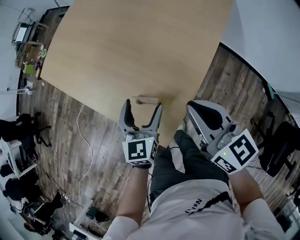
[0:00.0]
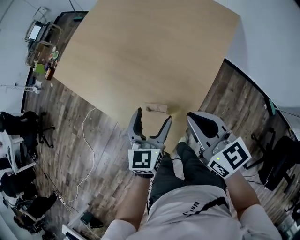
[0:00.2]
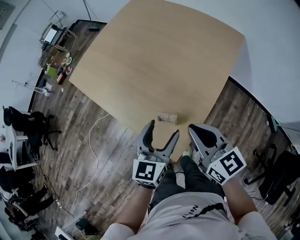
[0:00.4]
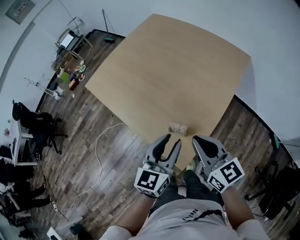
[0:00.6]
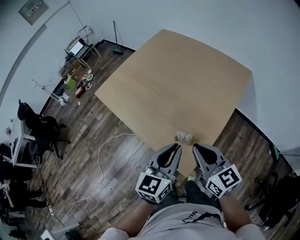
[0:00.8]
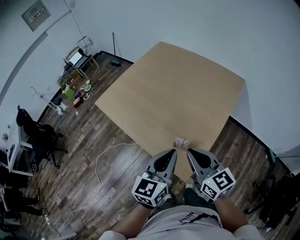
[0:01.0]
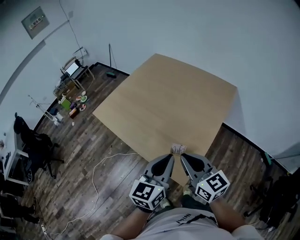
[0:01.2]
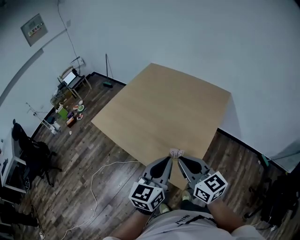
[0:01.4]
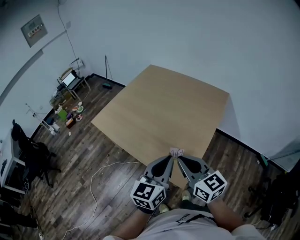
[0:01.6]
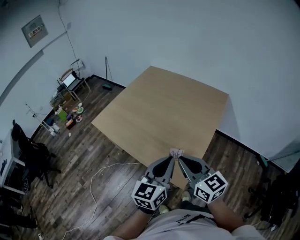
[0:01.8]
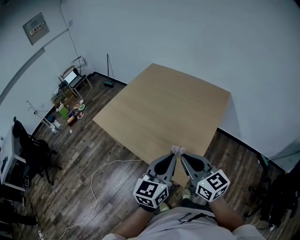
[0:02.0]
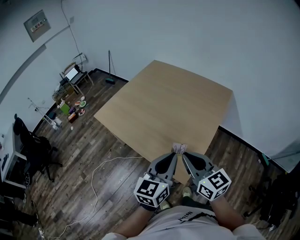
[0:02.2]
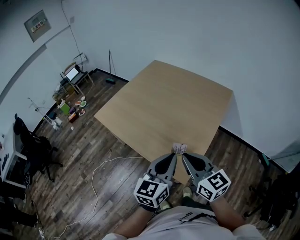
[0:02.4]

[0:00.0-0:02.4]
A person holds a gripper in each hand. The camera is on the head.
0:00.0 to 0:01.2: The right gripper shifts some 25 cm to the left, upward and backward, while the left gripper heads upward and backward, covering approximately 25 cm, changes its angle by approximately 20 degrees, and closes.
0:01.2 to 0:02.4: The grippers stay close to where they were, moving slightly.

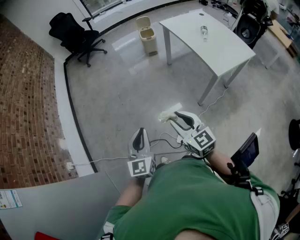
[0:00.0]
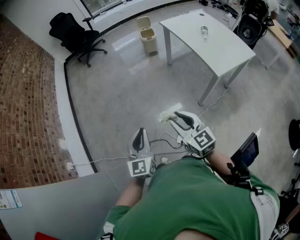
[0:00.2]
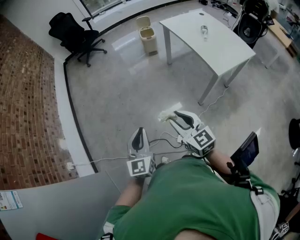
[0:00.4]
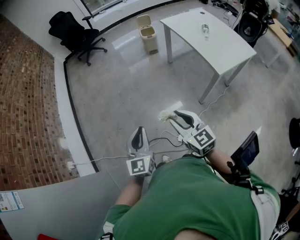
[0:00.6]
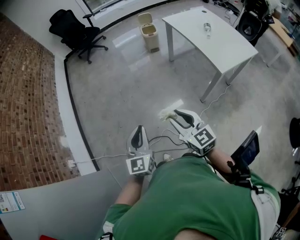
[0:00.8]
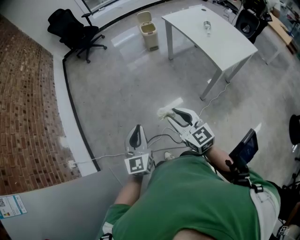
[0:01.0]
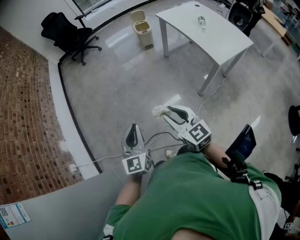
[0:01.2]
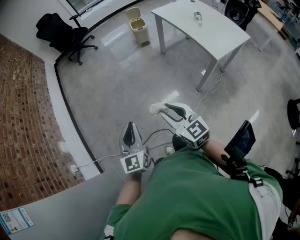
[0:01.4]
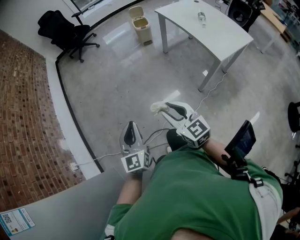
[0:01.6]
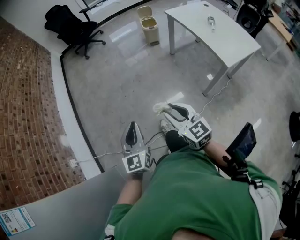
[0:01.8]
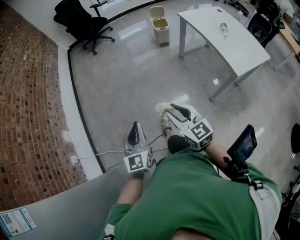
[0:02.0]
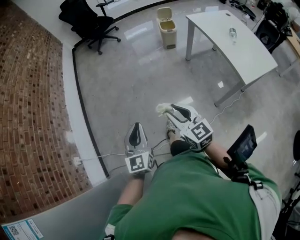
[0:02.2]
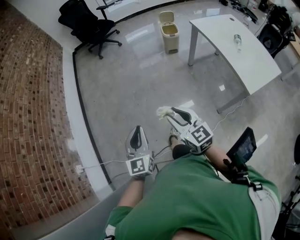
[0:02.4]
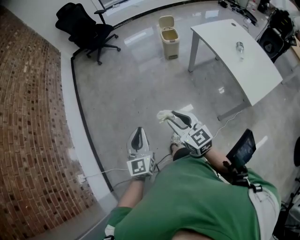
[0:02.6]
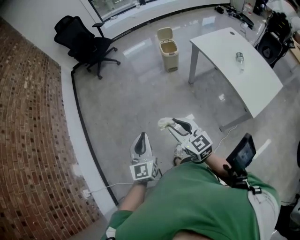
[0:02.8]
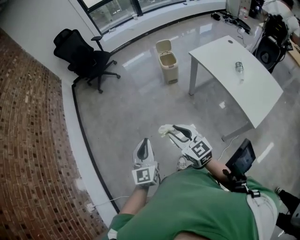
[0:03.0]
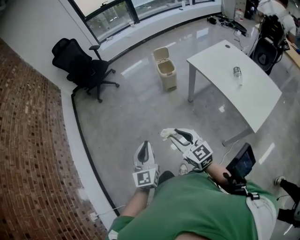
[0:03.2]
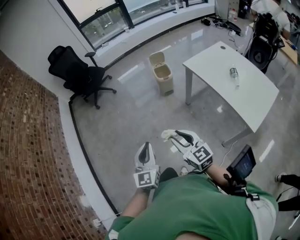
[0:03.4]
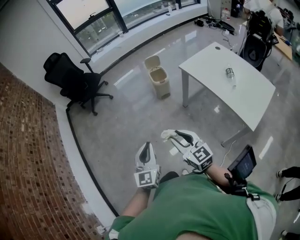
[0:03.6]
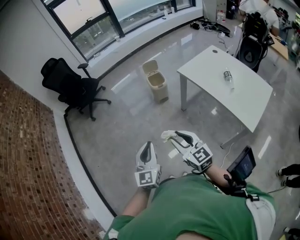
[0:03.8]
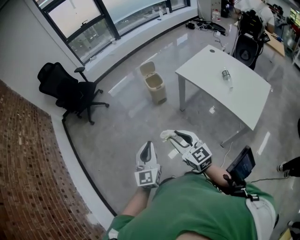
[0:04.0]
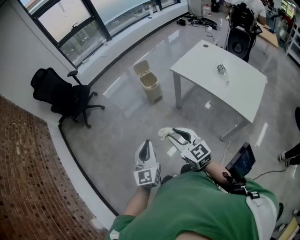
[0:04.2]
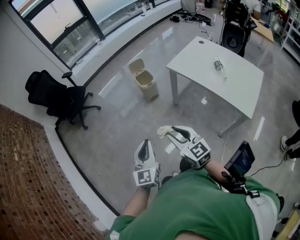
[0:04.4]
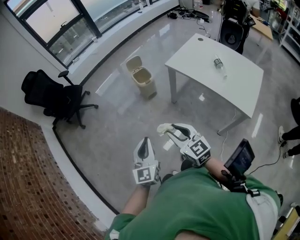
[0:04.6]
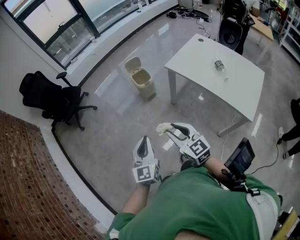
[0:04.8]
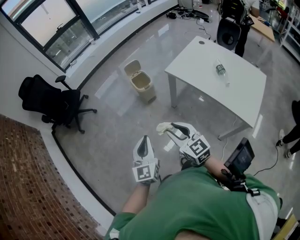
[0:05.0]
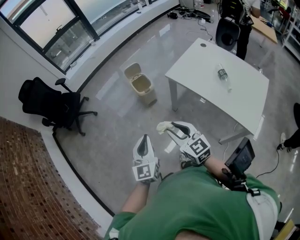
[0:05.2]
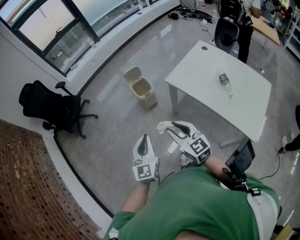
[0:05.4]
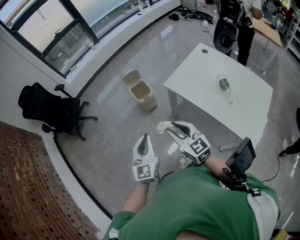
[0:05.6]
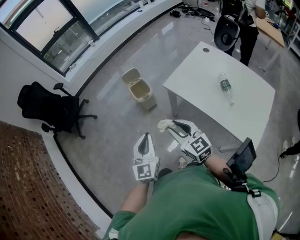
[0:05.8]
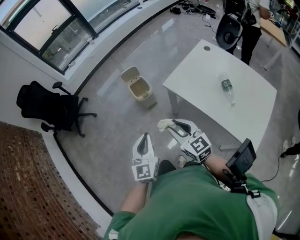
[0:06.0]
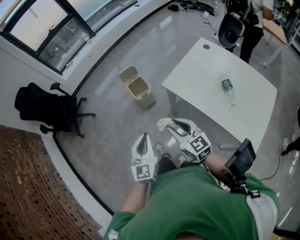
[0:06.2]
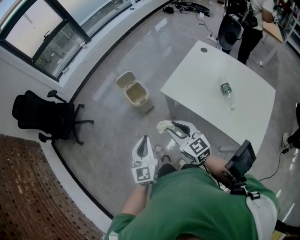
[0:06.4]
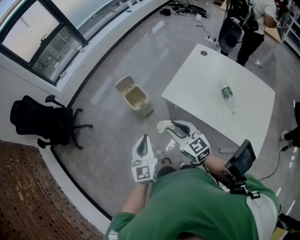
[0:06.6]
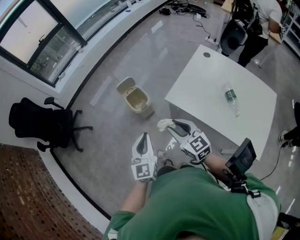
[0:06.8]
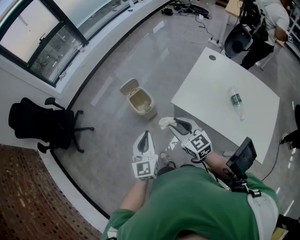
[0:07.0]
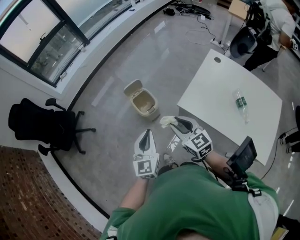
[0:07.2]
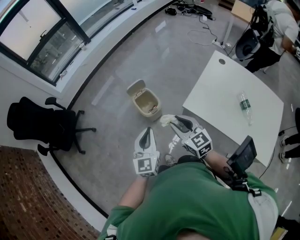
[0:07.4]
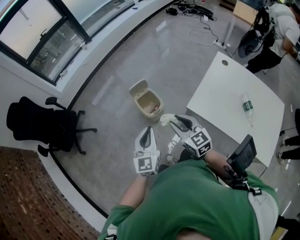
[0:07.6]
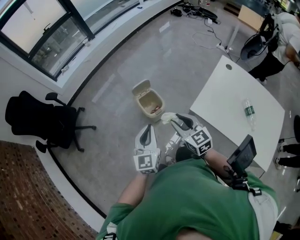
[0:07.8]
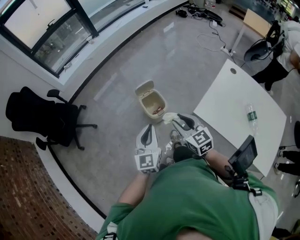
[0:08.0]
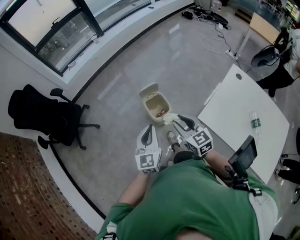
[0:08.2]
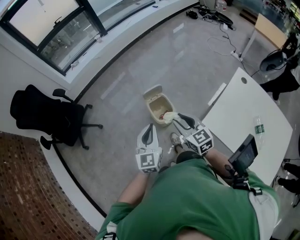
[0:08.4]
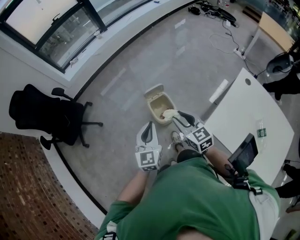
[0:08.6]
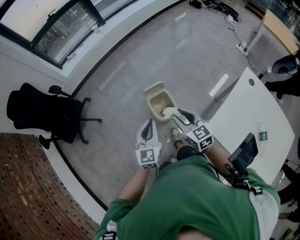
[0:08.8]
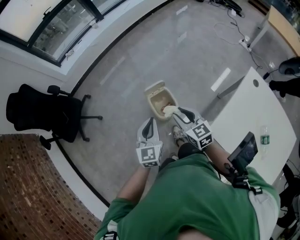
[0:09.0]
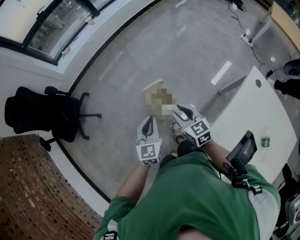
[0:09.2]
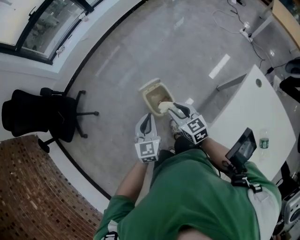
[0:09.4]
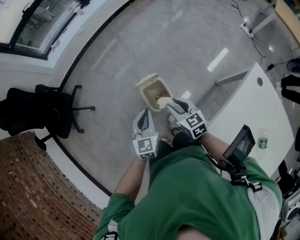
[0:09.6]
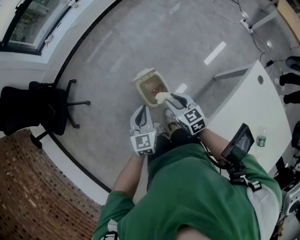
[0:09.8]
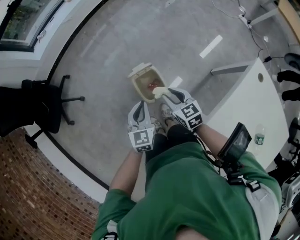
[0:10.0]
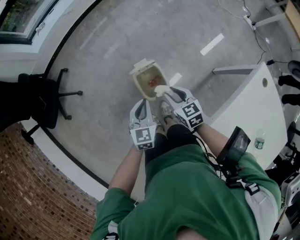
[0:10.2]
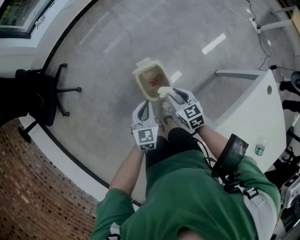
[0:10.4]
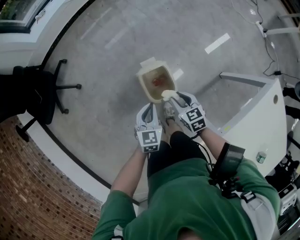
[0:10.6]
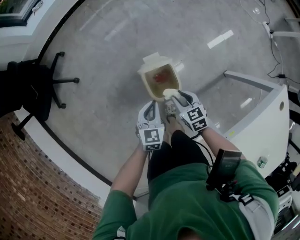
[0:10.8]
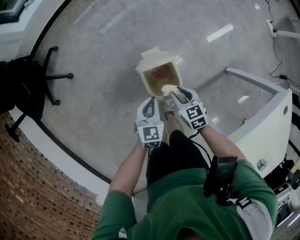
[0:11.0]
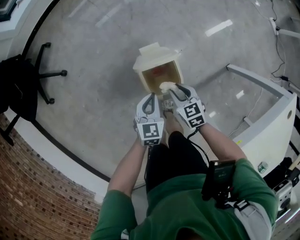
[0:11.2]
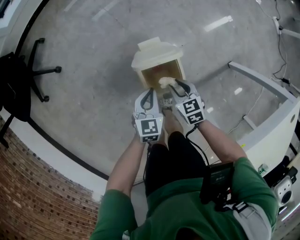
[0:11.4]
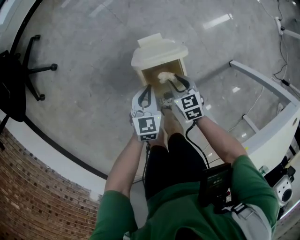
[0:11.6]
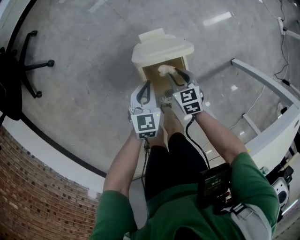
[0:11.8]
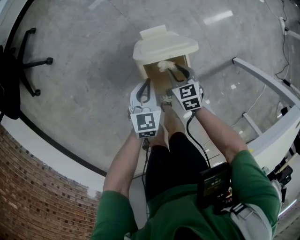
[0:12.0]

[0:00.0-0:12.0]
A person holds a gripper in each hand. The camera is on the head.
0:00.0 to 0:01.6: Both grippers move to the left, approximately 10 cm.
0:01.6 to 0:03.0: The grippers both shift forward by some 35 cm.
0:03.0 to 0:04.4: The two grippers go some 15 cm forward. The right gripper changes its angle by about 20 degrees.
0:04.4 to 0:06.0: Both grippers move forward and to the right, roughly 30 cm.
0:06.0 to 0:07.6: Both grippers travel together forward, approximately 25 cm.
0:07.6 to 0:09.0: Both grippers travel together forward, roughly 20 cm.
0:09.0 to 0:10.4: The grippers both shift downward and forward by roughly 20 cm. The right gripper changes its angle by roughly 20 degrees.
0:10.4 to 0:12.0: Both grippers move downward, roughly 30 cm.

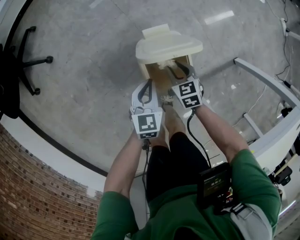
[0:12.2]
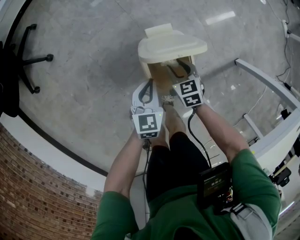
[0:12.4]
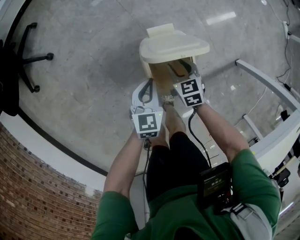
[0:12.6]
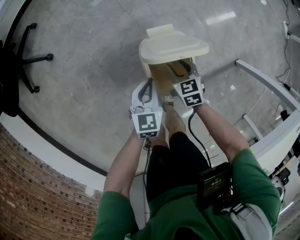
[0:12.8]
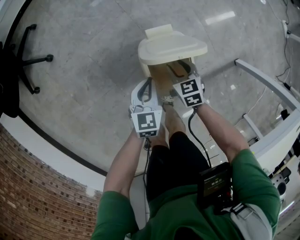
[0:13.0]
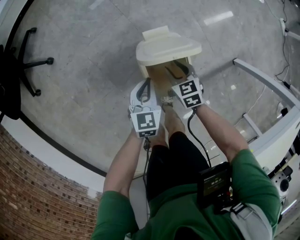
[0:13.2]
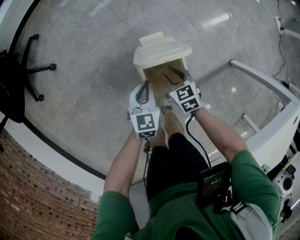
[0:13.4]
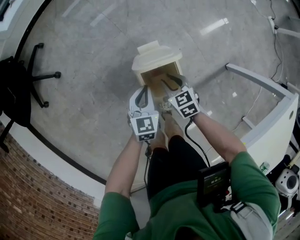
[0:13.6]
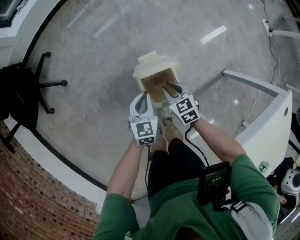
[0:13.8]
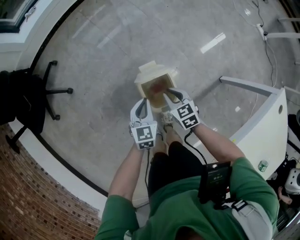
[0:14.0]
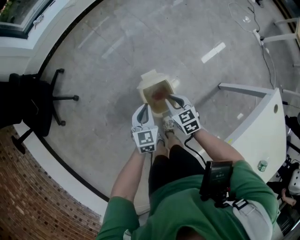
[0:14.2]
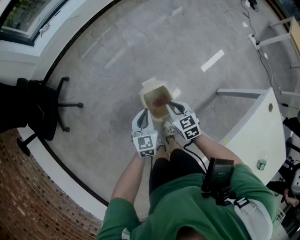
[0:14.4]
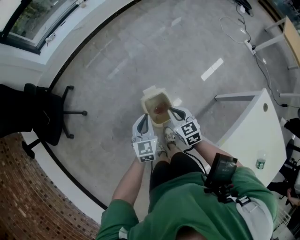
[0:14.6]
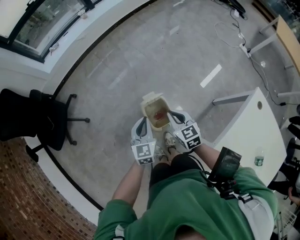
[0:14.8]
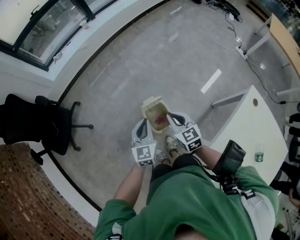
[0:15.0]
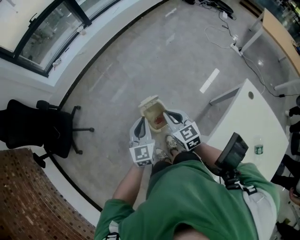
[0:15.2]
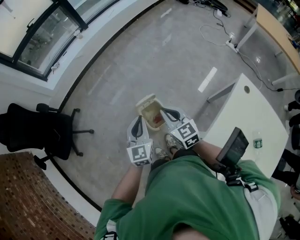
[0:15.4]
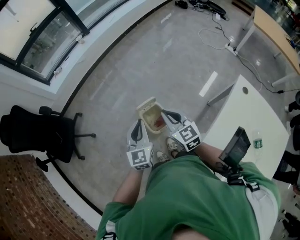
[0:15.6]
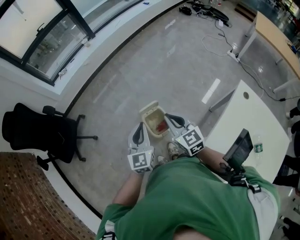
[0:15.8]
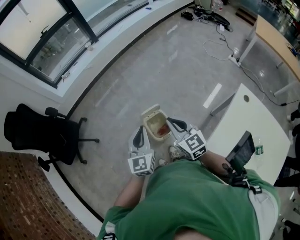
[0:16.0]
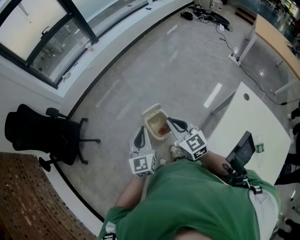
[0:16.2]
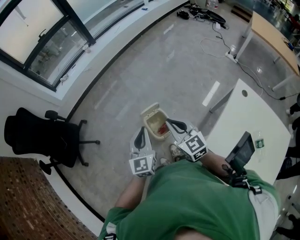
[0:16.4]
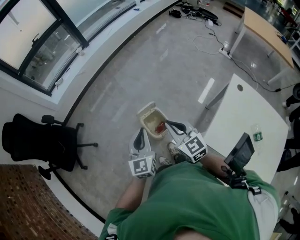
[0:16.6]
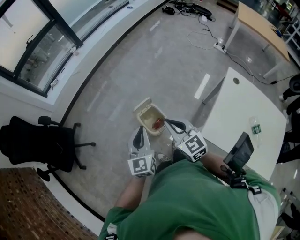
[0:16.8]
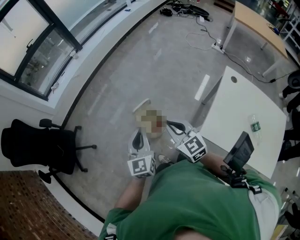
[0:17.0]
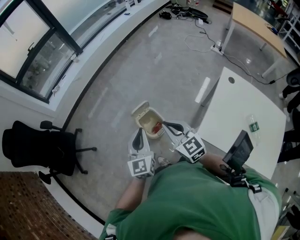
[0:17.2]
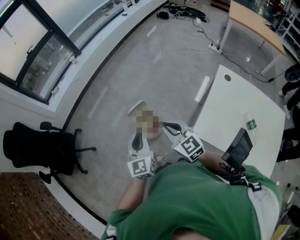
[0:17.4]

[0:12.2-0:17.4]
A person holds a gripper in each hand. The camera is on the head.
0:12.2 to 0:14.0: The two grippers go some 15 cm upward.
0:14.0 to 0:15.6: The two grippers go roughly 35 cm upward. The right gripper turns by approximately 30 degrees. The left gripper rotates some 30 degrees.
0:15.6 to 0:17.4: The right gripper heads backward and upward, covering roughly 15 cm, while the left gripper travels backward by approximately 10 cm.

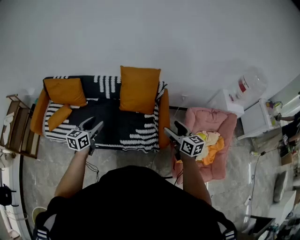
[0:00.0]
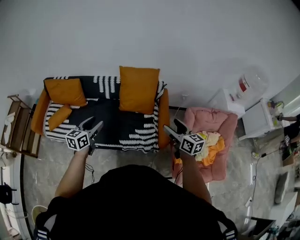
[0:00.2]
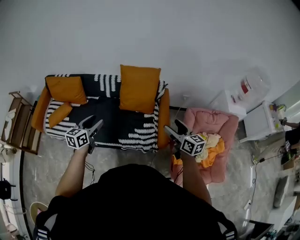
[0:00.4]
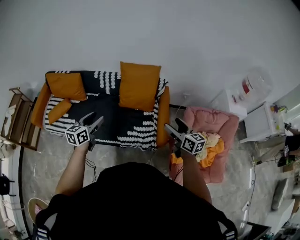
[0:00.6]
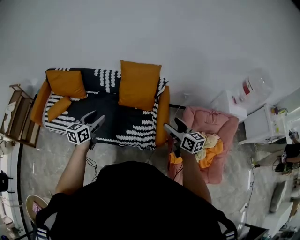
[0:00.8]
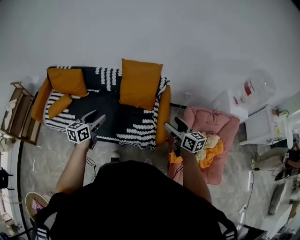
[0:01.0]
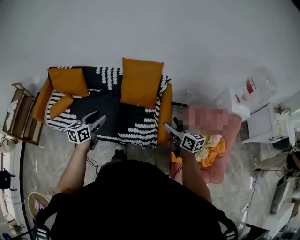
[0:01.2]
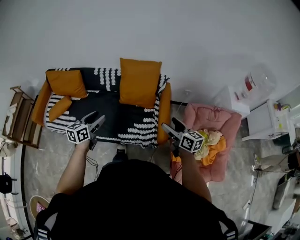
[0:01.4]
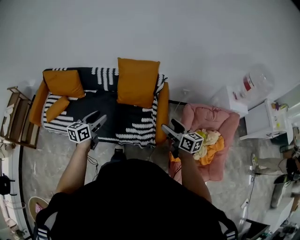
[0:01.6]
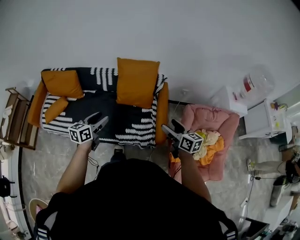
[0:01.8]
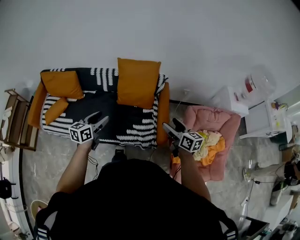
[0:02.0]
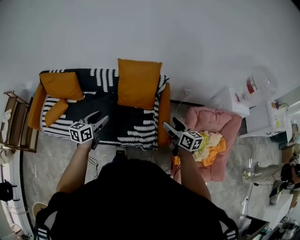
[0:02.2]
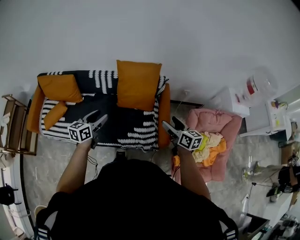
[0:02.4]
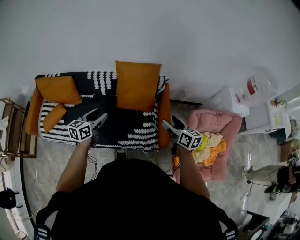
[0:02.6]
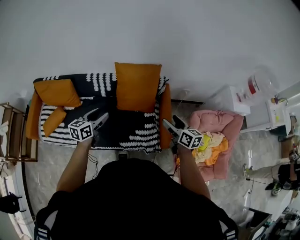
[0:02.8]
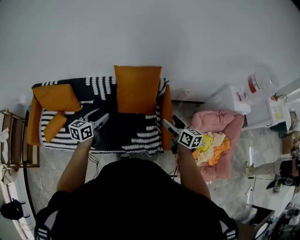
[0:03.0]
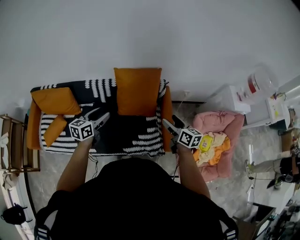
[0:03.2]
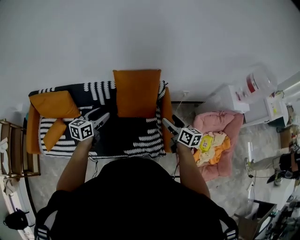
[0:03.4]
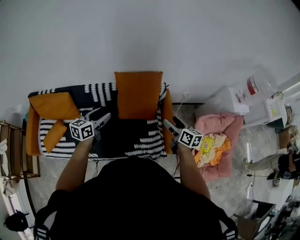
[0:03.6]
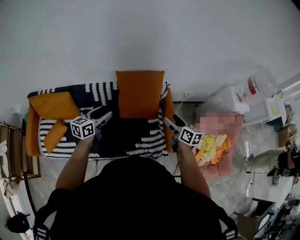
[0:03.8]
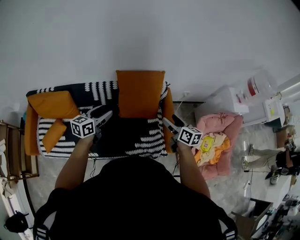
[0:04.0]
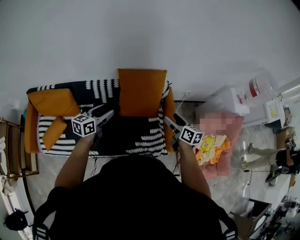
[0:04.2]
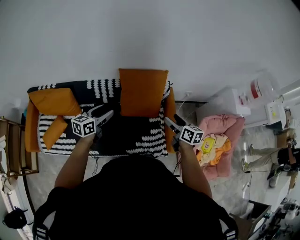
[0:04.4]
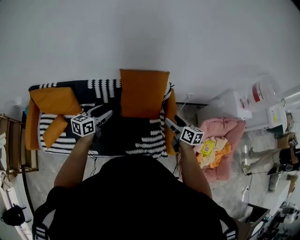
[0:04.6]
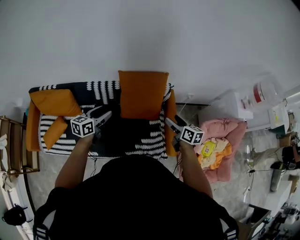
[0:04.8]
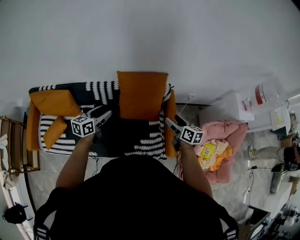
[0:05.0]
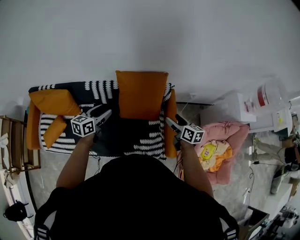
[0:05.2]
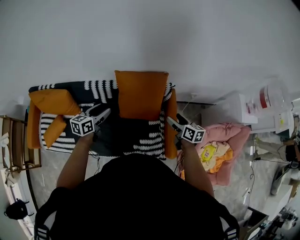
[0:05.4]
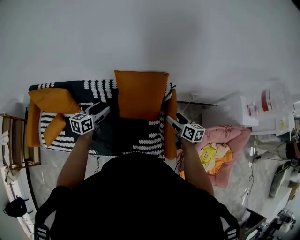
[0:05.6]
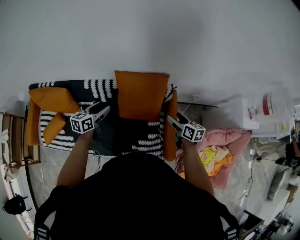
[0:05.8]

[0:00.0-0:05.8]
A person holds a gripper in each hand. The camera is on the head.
0:00.0 to 0:01.4: The two grippers go approximately 5 cm to the right.
0:01.4 to 0:02.8: The grippers both shift forward by approximately 15 cm.
0:02.8 to 0:04.4: The two grippers go about 10 cm forward and to the left.
0:04.4 to 0:05.8: The right gripper heads forward, to the right and downward, covering about 15 cm. The left gripper moves forward, about 10 cm.
